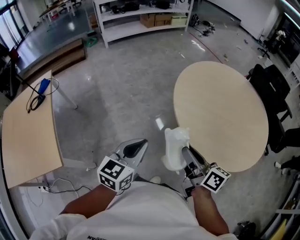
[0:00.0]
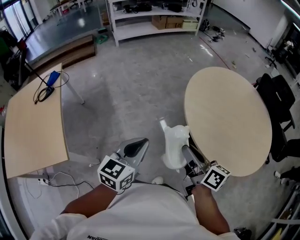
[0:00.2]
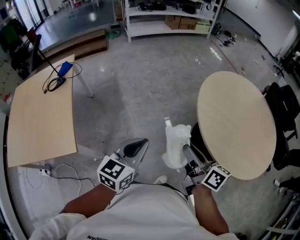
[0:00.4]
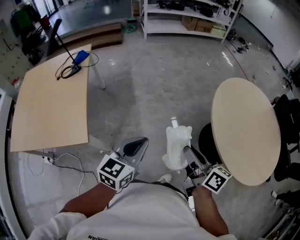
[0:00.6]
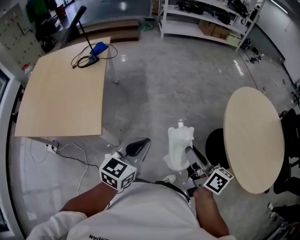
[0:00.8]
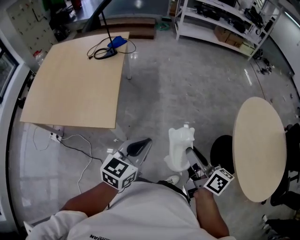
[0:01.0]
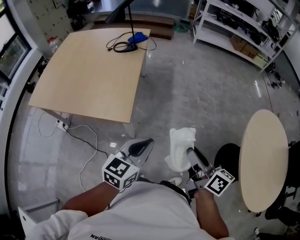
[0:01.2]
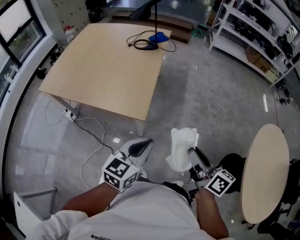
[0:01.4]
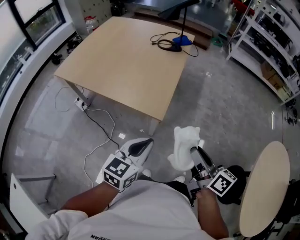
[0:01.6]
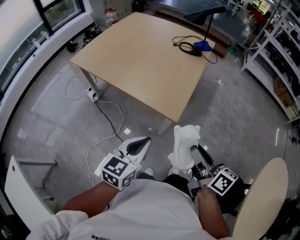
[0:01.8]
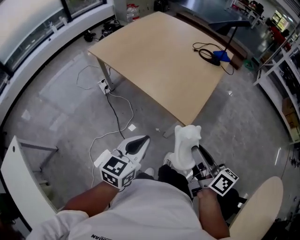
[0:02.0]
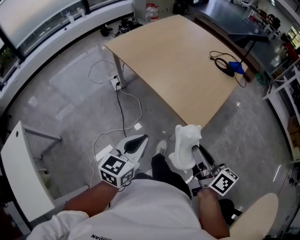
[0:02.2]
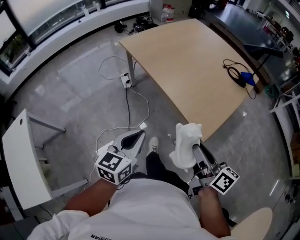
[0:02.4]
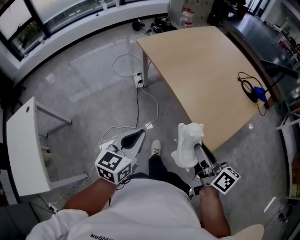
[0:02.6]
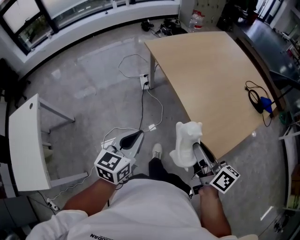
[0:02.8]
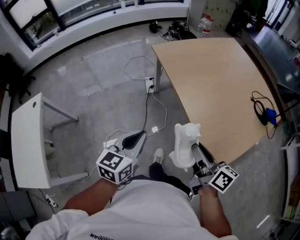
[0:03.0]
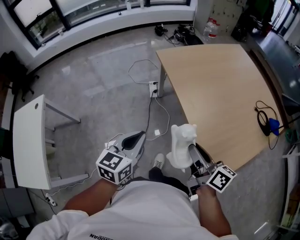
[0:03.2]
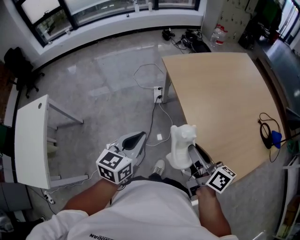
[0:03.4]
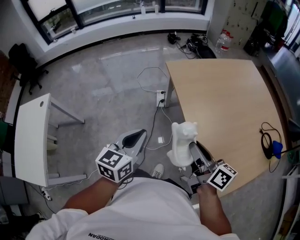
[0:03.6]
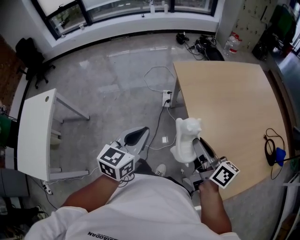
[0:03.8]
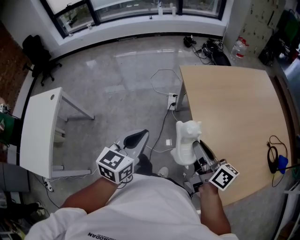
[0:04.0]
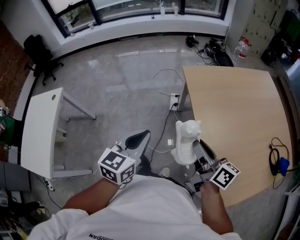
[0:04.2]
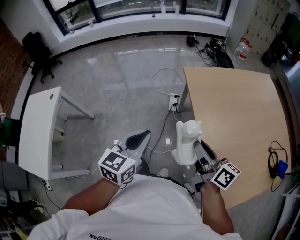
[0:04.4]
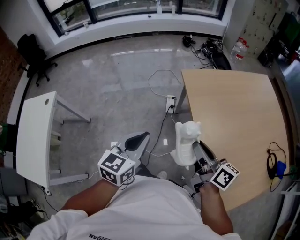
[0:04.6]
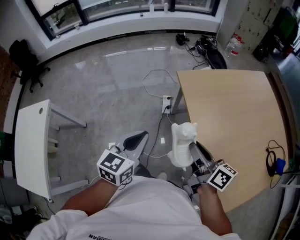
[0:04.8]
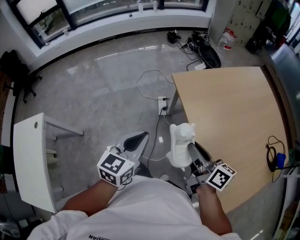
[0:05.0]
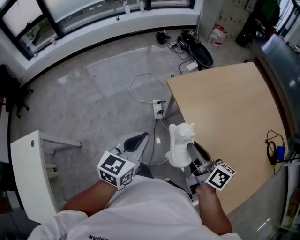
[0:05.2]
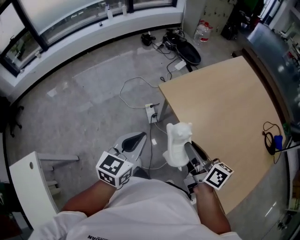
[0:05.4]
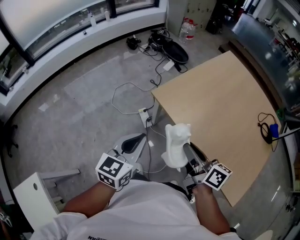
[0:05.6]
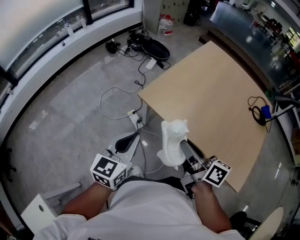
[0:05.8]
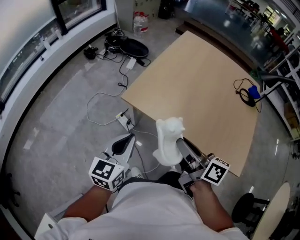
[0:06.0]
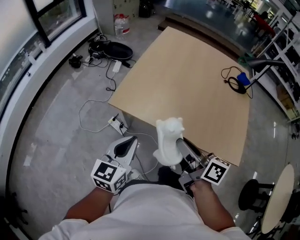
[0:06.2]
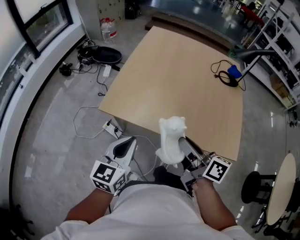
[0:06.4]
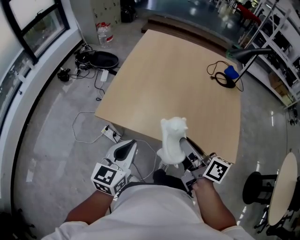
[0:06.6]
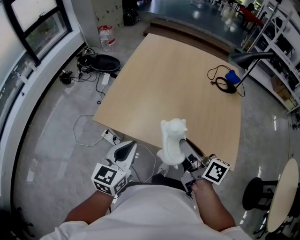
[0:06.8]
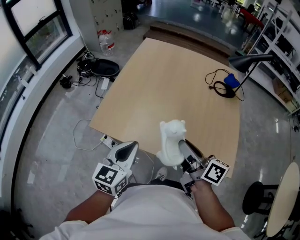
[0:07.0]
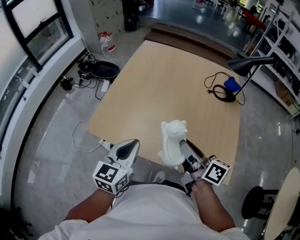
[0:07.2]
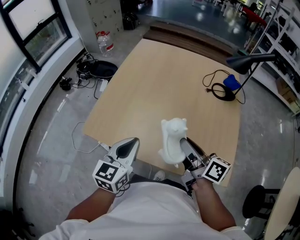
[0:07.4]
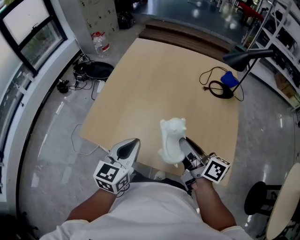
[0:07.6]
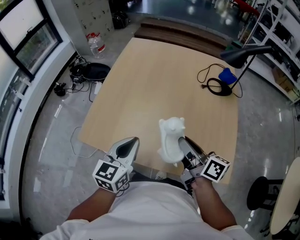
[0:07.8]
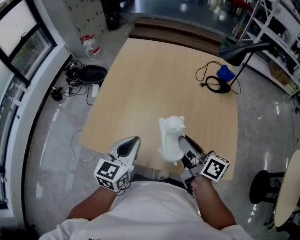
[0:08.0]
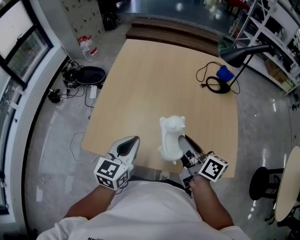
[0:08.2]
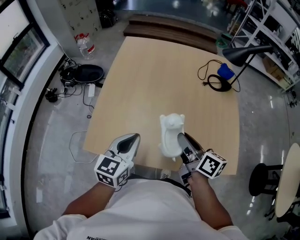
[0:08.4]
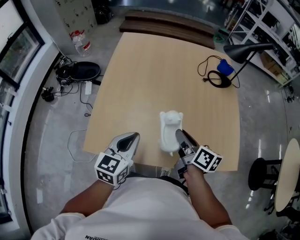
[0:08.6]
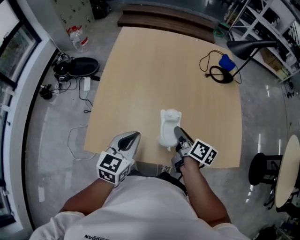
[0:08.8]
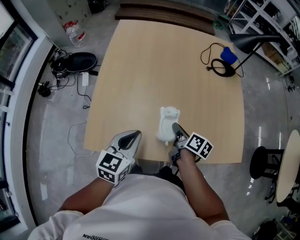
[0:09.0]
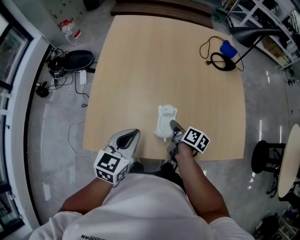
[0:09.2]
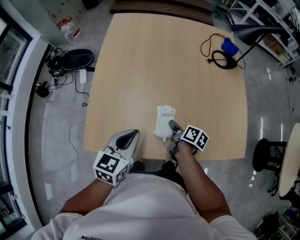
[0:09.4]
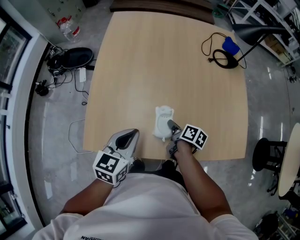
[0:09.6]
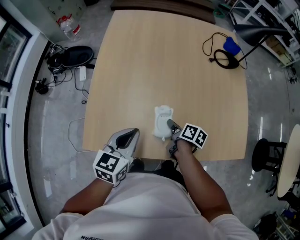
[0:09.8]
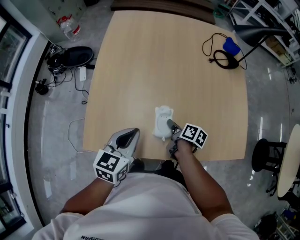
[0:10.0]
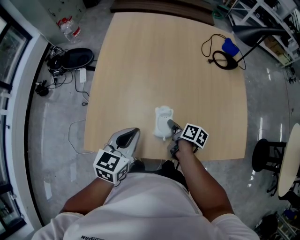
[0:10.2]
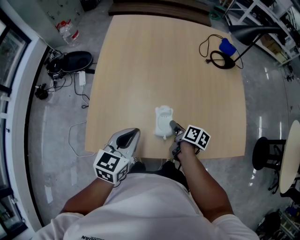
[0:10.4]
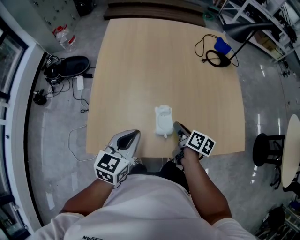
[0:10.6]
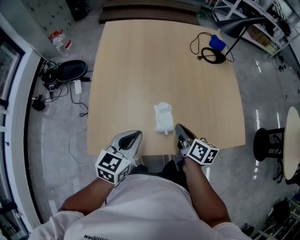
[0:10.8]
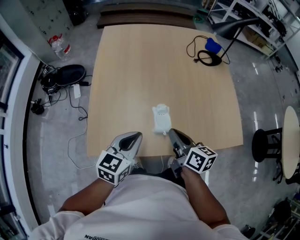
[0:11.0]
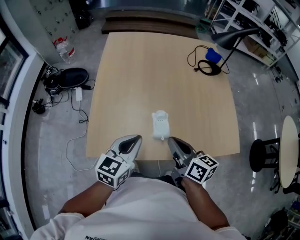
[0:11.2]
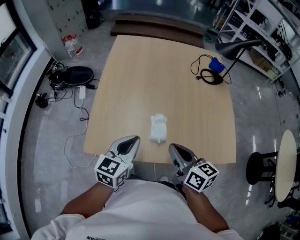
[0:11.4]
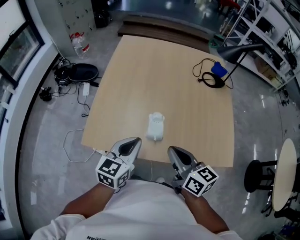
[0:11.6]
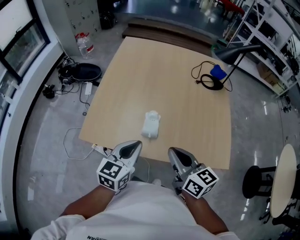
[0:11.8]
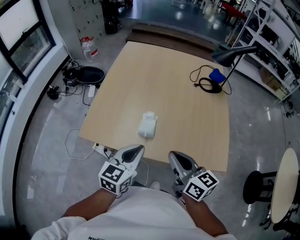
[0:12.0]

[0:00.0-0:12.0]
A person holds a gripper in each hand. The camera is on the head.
0:00.0 to 0:01.6: Both grippers are carried some 50 cm. The left gripper swivels some 50 degrees. Meanwhile the right gripper swivels about 50 degrees.
0:01.6 to 0:03.0: The left gripper changes place by approximately 30 cm, and rotates approximately 50 degrees, while the right gripper changes place by roughly 35 cm, and turns by about 50 degrees.
0:03.0 to 0:04.4: The grippers both shift forward by roughly 15 cm.
0:04.4 to 0:06.0: The left gripper changes place by approximately 25 cm, and turns by roughly 40 degrees, while the right gripper changes place by about 15 cm, and rotates some 40 degrees.
0:06.0 to 0:07.6: The two grippers go some 25 cm to the right and forward.
0:07.6 to 0:09.0: The right gripper shifts some 20 cm downward and to the left, and turns by roughly 40 degrees. Meanwhile the left gripper travels to the left, forward and downward by approximately 10 cm.
0:09.0 to 0:10.4: The right gripper moves downward, approximately 5 cm.
0:10.4 to 0:12.0: The right gripper heads upward and backward, covering approximately 25 cm, angles its fingers upward, by some 30 degrees, and closes its fingers. The left gripper goes approximately 15 cm to the right and backward.

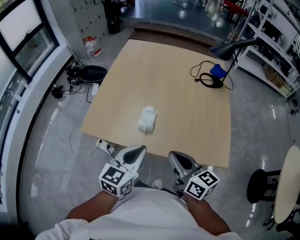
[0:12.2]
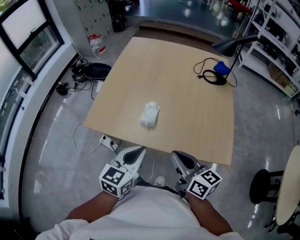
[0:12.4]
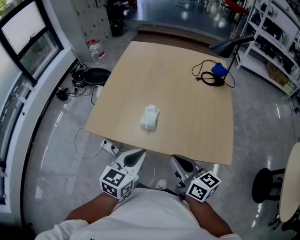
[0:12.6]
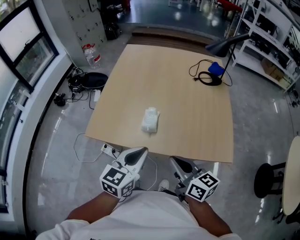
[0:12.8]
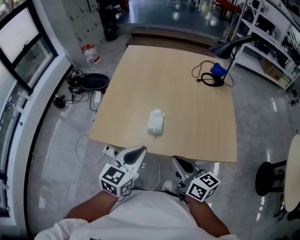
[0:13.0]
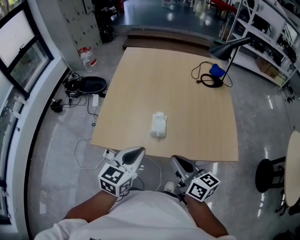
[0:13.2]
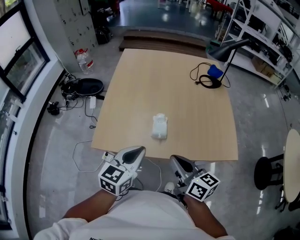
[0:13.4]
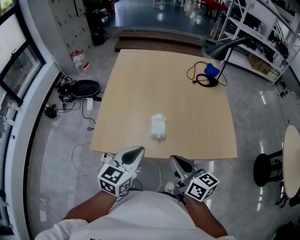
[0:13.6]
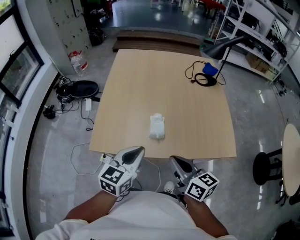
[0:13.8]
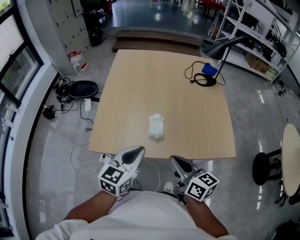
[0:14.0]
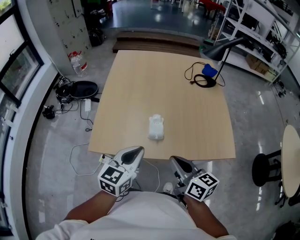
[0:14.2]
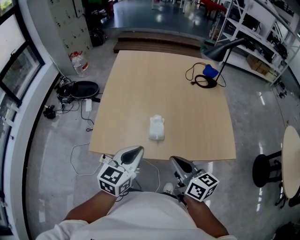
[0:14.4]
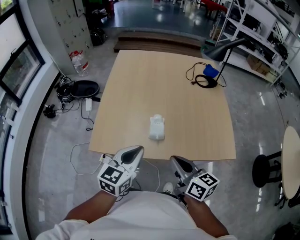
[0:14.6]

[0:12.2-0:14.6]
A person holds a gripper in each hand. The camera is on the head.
0:12.2 to 0:13.4: Both grippers travel together to the left, some 10 cm.
0:13.4 to 0:14.6: Neither gripper changes place.

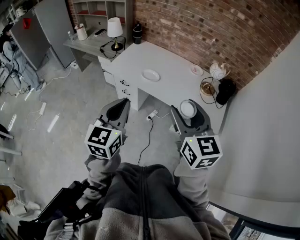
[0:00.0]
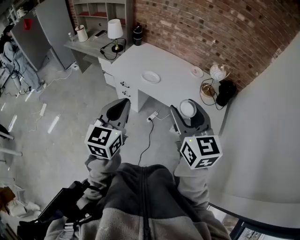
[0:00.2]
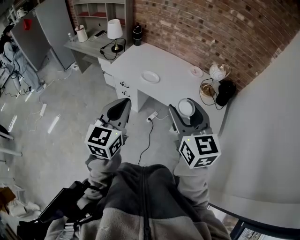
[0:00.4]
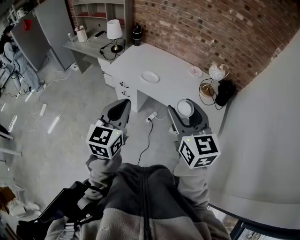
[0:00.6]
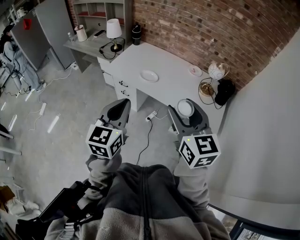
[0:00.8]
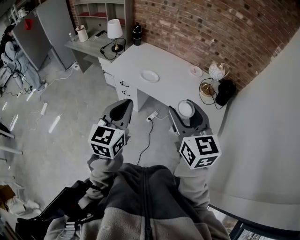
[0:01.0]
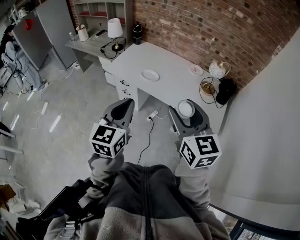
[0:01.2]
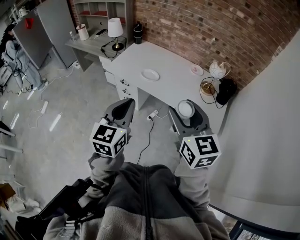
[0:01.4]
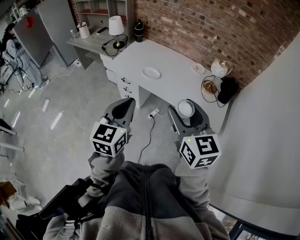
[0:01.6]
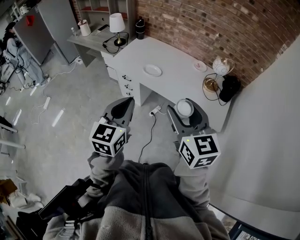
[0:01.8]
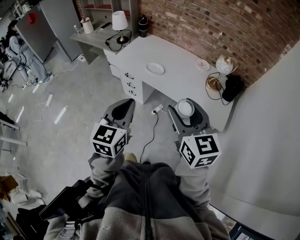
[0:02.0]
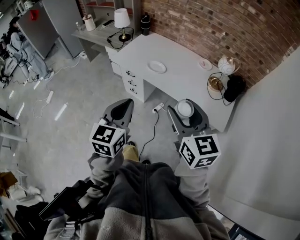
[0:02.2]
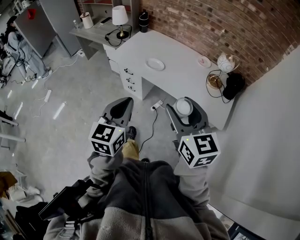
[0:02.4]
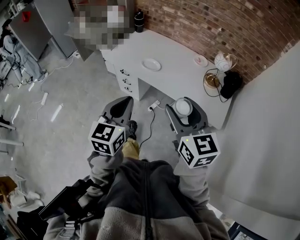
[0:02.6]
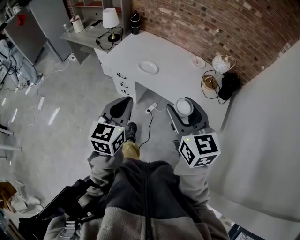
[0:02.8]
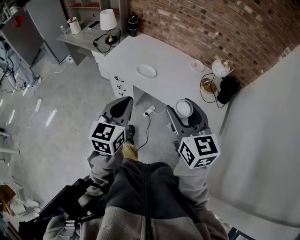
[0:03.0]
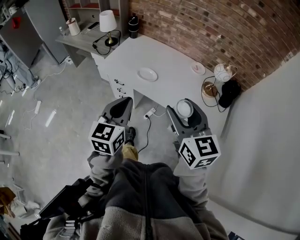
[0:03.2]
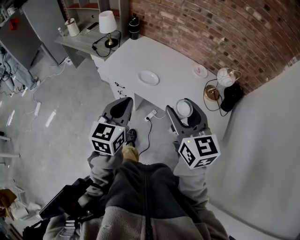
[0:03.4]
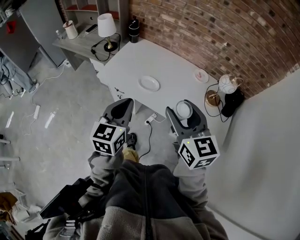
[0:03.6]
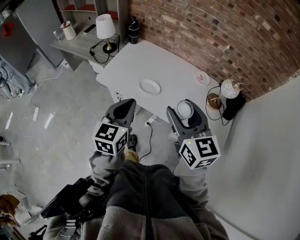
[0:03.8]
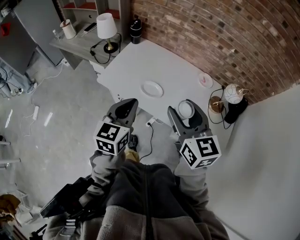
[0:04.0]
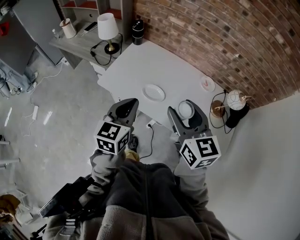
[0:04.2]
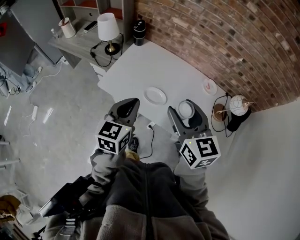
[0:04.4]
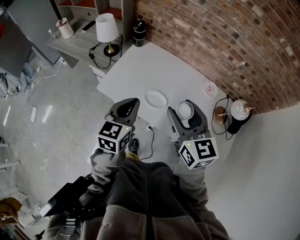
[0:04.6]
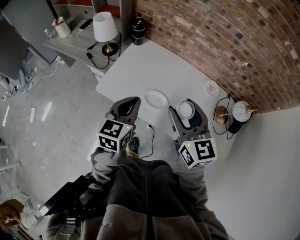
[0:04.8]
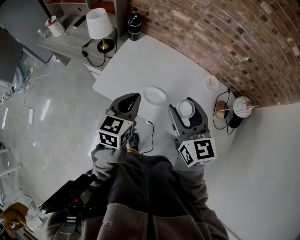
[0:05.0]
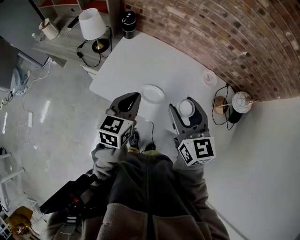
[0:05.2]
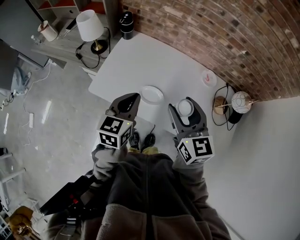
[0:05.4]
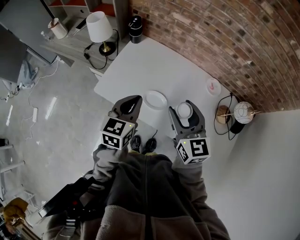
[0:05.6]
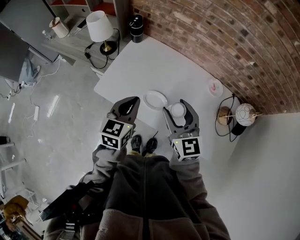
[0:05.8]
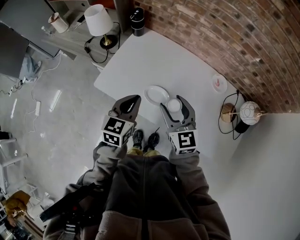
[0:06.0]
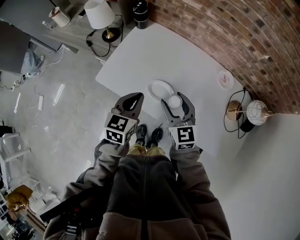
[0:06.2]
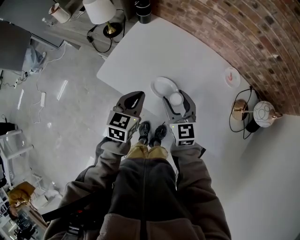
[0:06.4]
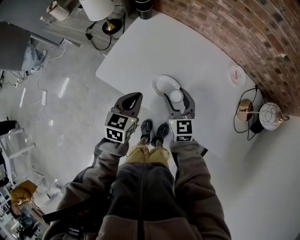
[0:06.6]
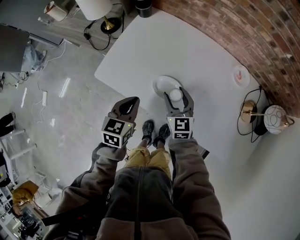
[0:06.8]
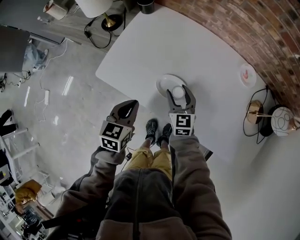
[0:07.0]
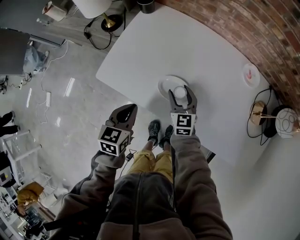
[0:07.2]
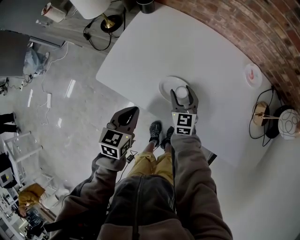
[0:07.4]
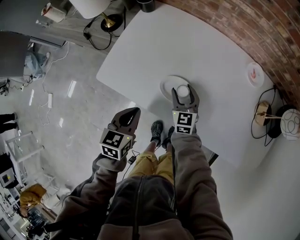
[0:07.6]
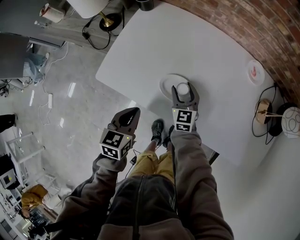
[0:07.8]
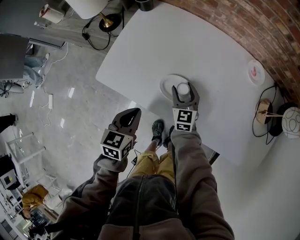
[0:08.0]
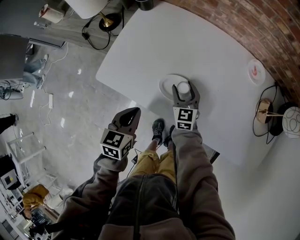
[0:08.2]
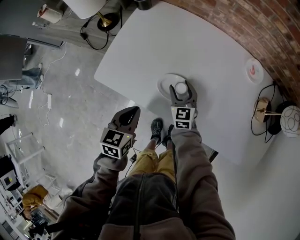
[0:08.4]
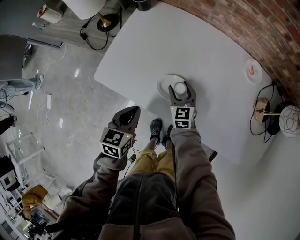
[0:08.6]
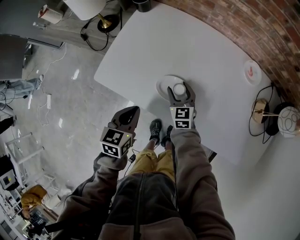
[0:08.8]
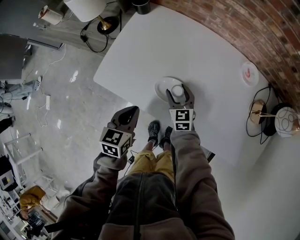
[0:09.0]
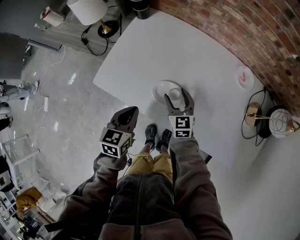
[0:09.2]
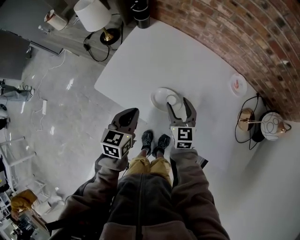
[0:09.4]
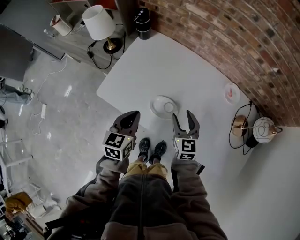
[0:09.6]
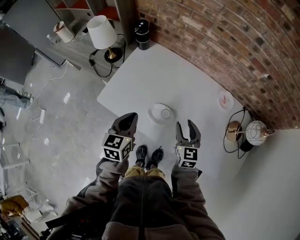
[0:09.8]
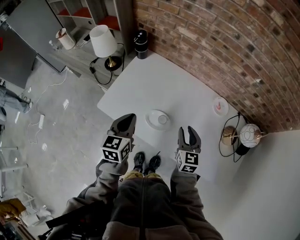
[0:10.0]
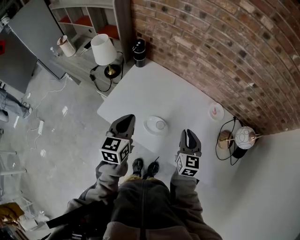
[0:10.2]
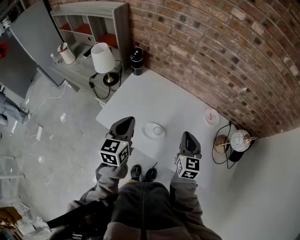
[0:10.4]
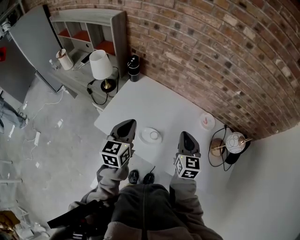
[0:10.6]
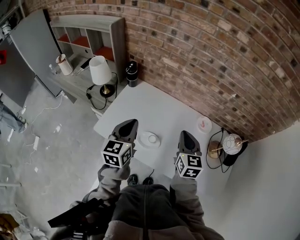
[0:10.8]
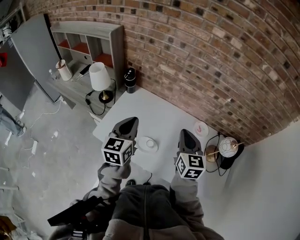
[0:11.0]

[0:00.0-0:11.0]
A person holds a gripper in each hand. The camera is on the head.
0:00.0 to 0:01.6: There are only small adjustments of the grippers.
0:01.6 to 0:03.2: The right gripper moves forward, approximately 10 cm; the left gripper travels forward and downward by about 15 cm.
0:03.2 to 0:04.8: Both grippers move forward, approximately 30 cm.
0:04.8 to 0:06.2: The left gripper shifts about 10 cm downward. The right gripper travels downward by approximately 20 cm.
0:06.2 to 0:07.8: The left gripper goes about 15 cm downward. Meanwhile the right gripper heads downward, covering some 25 cm.
0:07.8 to 0:09.4: The right gripper goes about 10 cm upward. Meanwhile the left gripper goes roughly 5 cm upward.
0:09.4 to 0:11.0: The two grippers go roughly 30 cm upward. The left gripper turns by roughly 20 degrees; the right gripper closes.
